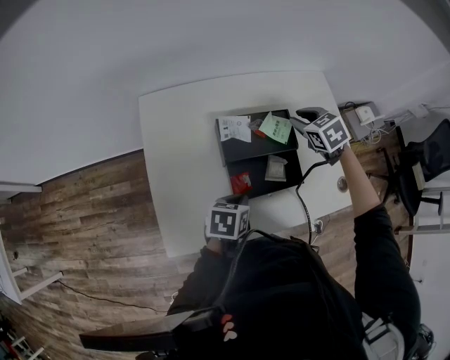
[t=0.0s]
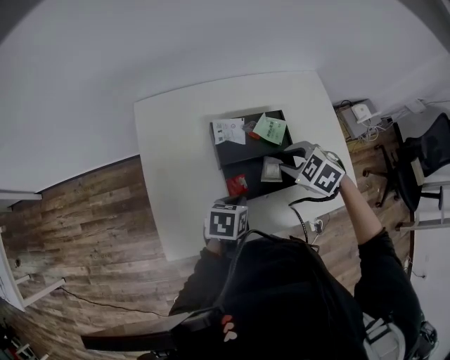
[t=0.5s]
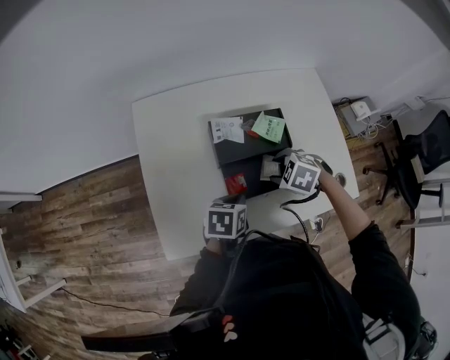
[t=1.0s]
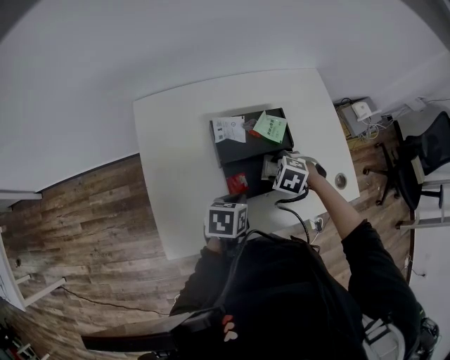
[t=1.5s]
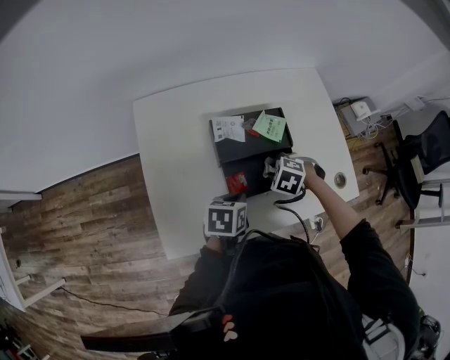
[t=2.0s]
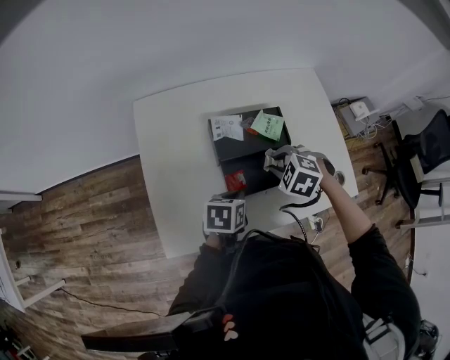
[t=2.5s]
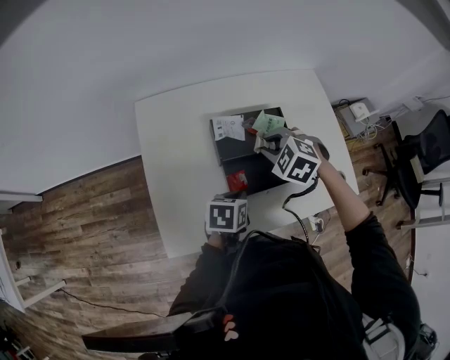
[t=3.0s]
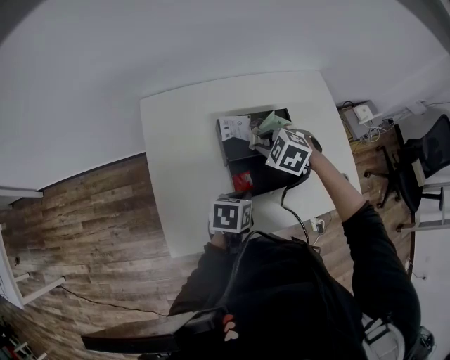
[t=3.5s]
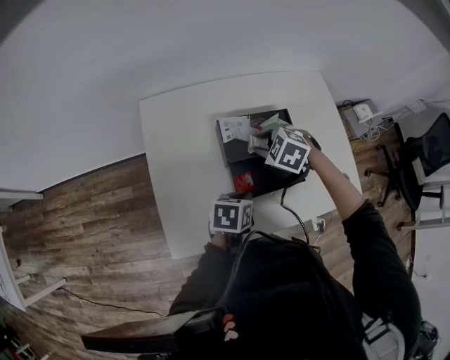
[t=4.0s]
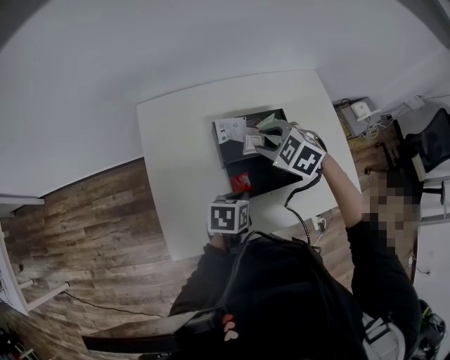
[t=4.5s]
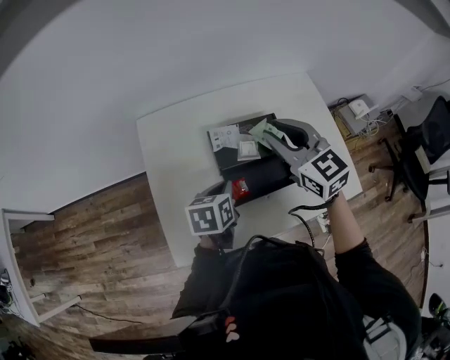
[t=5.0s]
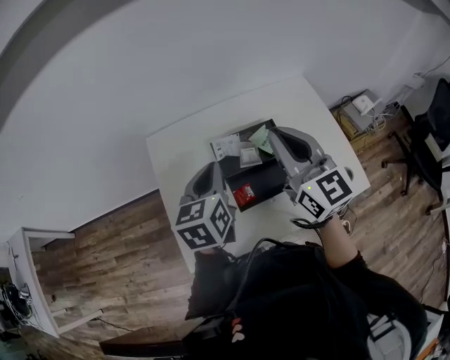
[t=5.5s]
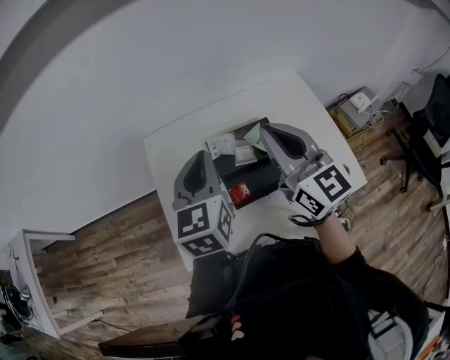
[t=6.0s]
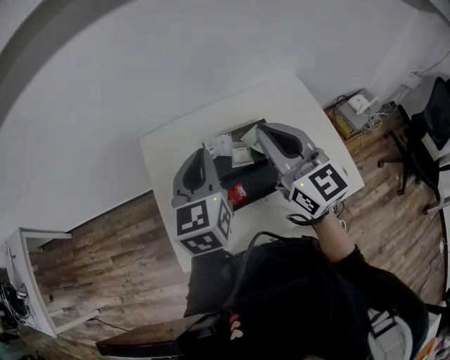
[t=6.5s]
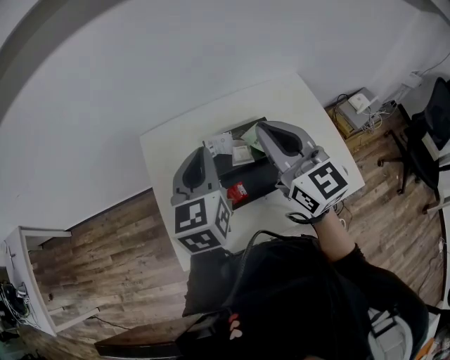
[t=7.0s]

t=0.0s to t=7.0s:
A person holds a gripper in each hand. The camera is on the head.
t=0.0s to t=2.0s: The right gripper shifts by roughly 20 cm, and swivels some 40 degrees.
t=2.0s to t=3.5s: The right gripper ends up some 15 cm from where it was.
t=3.5s to t=5.0s: The left gripper heads upward and forward, covering about 10 cm. Meanwhile the right gripper travels upward by roughly 20 cm, and points its fingers some 50 degrees further upward.
t=5.0s to t=7.0s: The left gripper is displaced upward by approximately 20 cm, and changes its angle by some 40 degrees. The right gripper is displaced upward by about 10 cm, turns by roughly 20 degrees, and closes up.

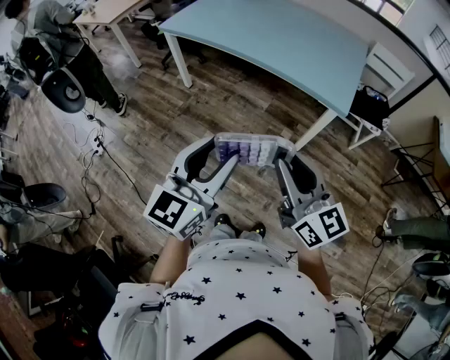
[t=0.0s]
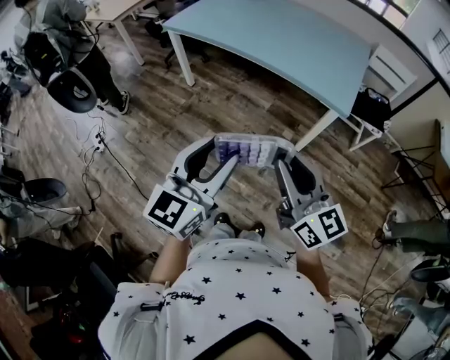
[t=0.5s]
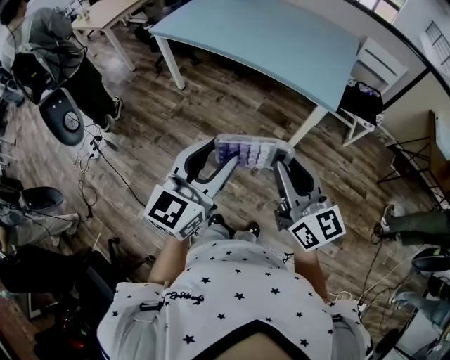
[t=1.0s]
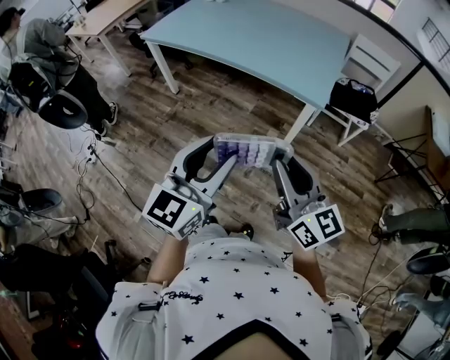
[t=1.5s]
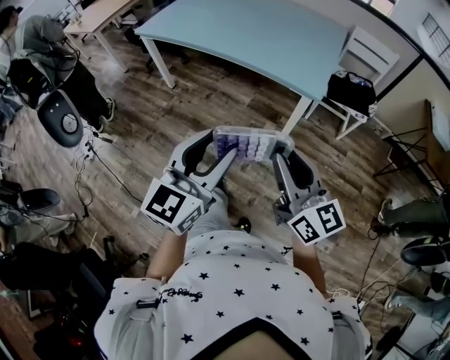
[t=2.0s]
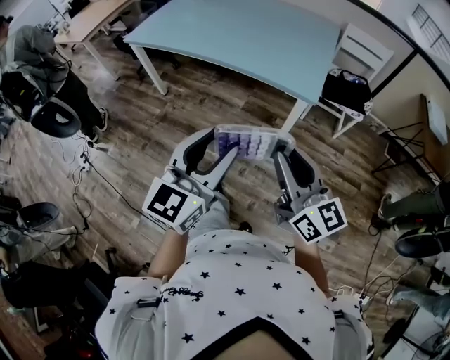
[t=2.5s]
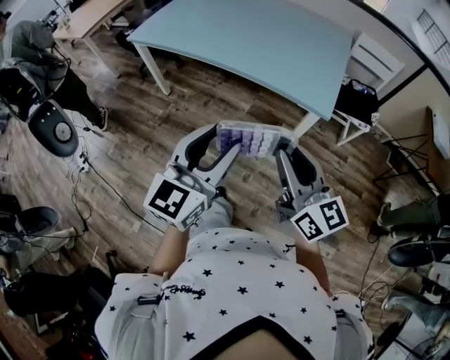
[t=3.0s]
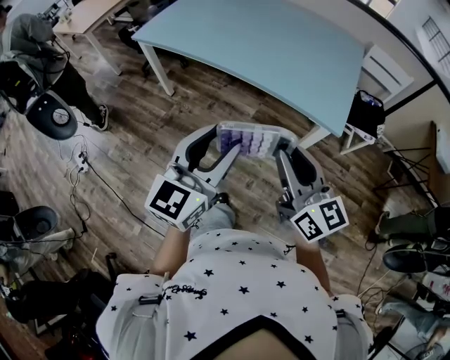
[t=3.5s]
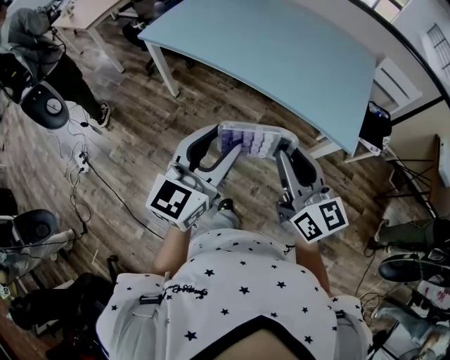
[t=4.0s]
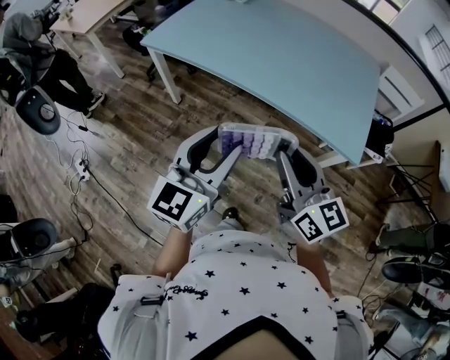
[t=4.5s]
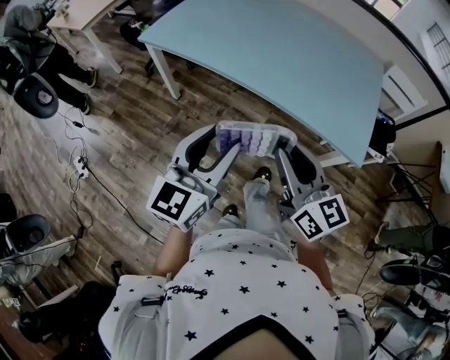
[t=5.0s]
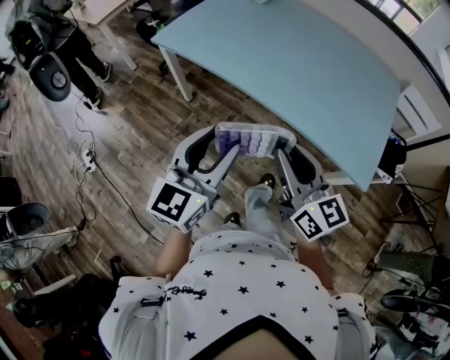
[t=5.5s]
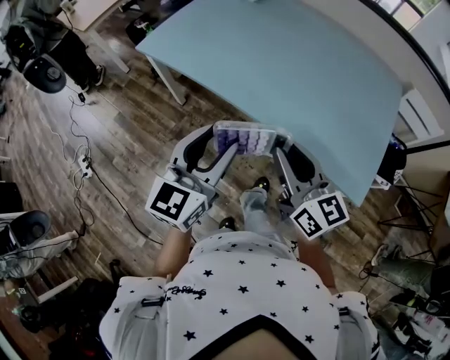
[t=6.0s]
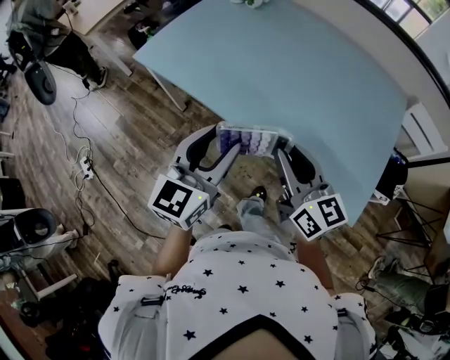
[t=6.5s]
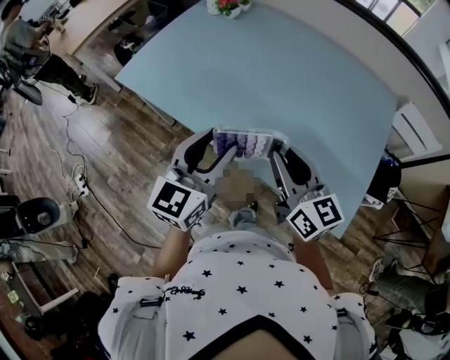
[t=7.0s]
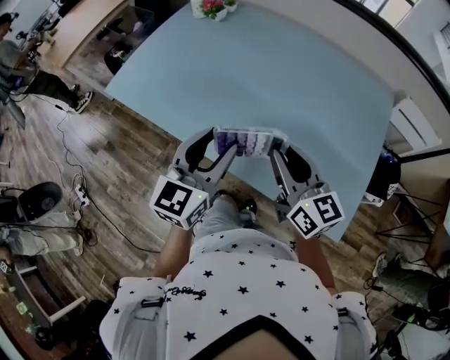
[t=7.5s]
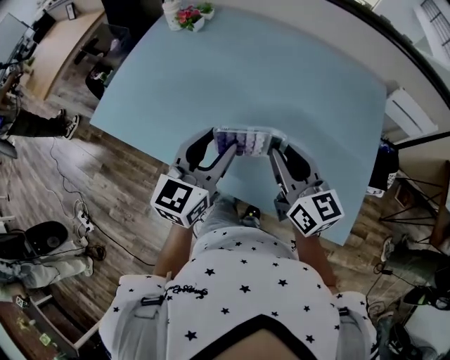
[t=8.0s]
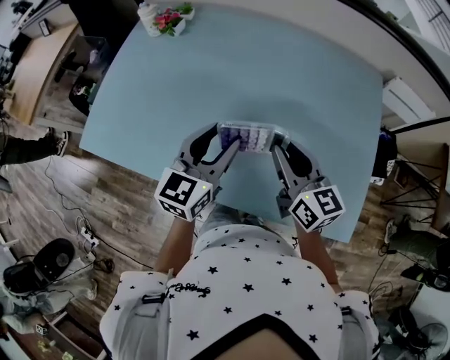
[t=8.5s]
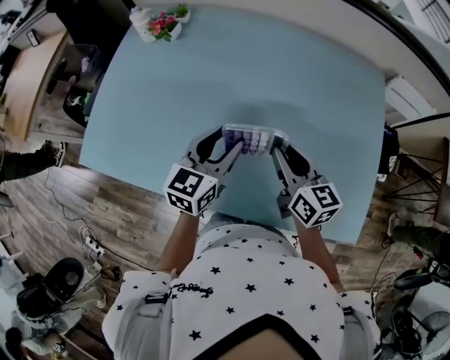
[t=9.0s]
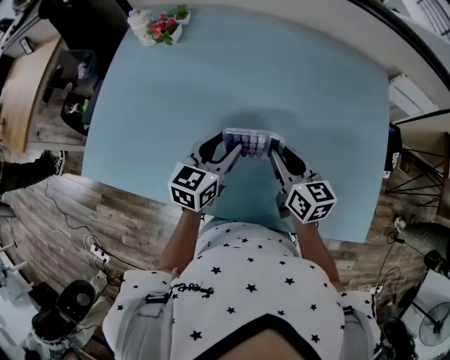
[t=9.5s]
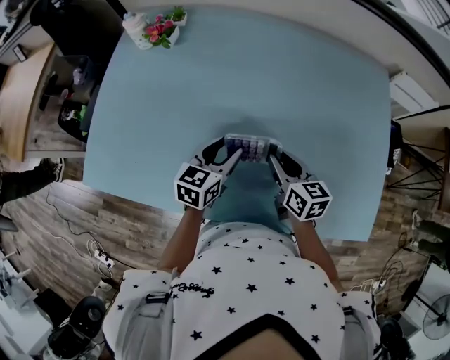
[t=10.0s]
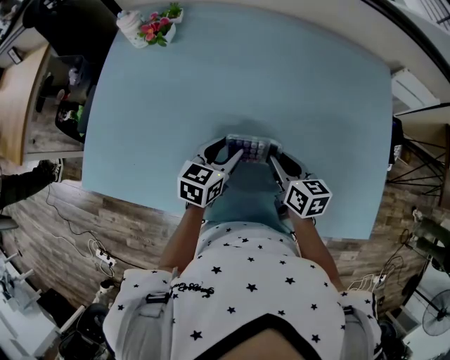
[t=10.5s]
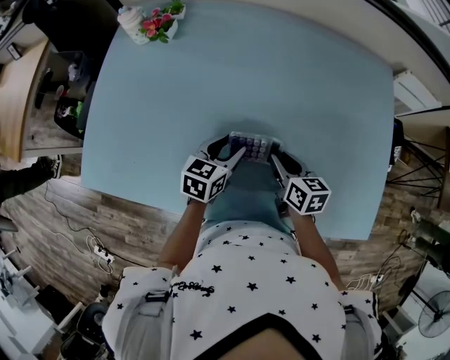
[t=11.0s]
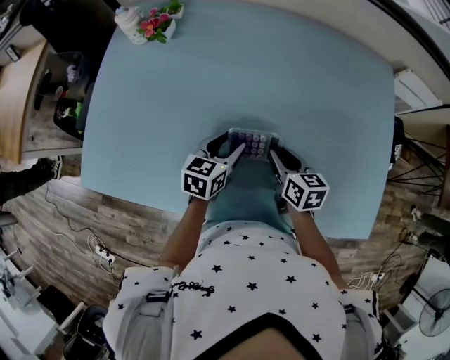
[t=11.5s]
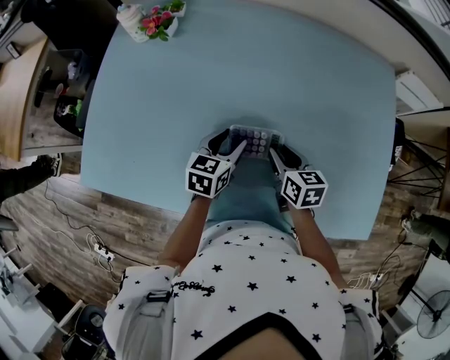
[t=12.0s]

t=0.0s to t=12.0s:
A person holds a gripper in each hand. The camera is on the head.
t=0.0s to t=2.0s: Both grippers move to the right, some 15 cm.
t=2.0s to t=4.0s: Both grippers travel together forward and to the left, approximately 30 cm.
t=4.0s to t=6.0s: Both grippers travel together forward, some 20 cm.
t=6.0s to t=8.0s: The grippers both shift forward and to the right by approximately 25 cm.
t=8.0s to t=10.0s: The two grippers go roughly 20 cm downward and forward. The left gripper swivels about 30 degrees, while the right gripper rotates some 30 degrees.
t=10.0s to t=12.0s: The right gripper moves roughly 5 cm.

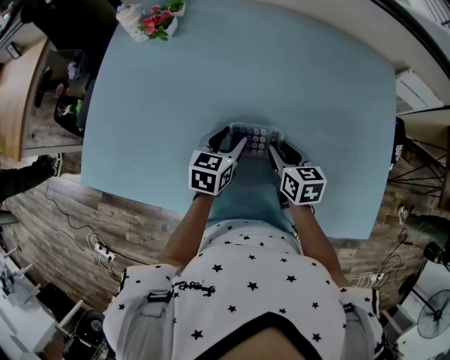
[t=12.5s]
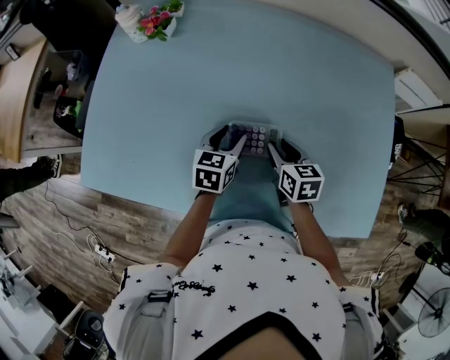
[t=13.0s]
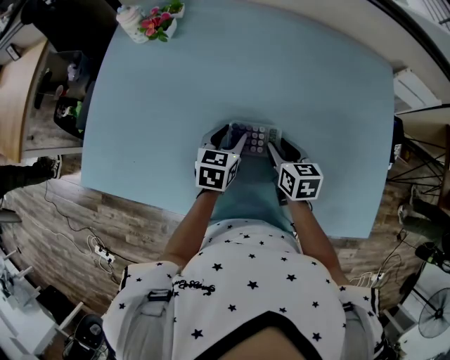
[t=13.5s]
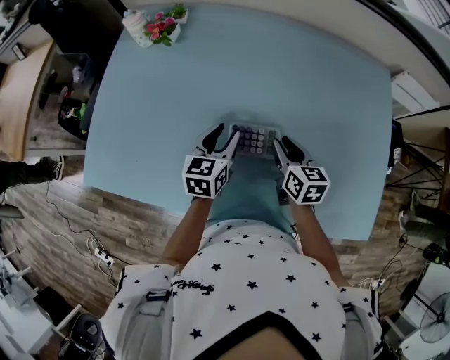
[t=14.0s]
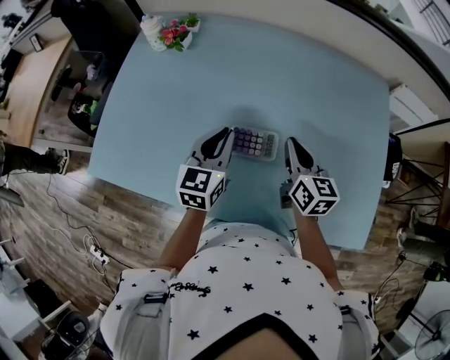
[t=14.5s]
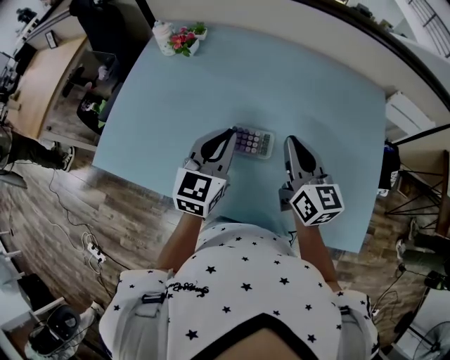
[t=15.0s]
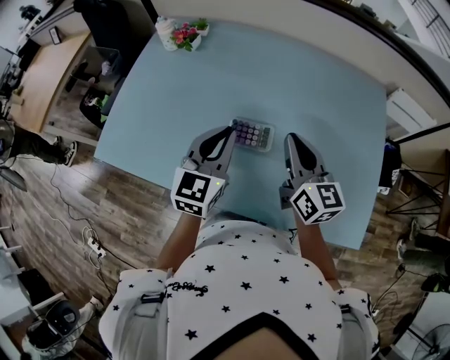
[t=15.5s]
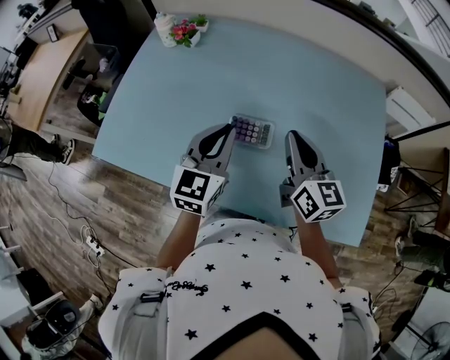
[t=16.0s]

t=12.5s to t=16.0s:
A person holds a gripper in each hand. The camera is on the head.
t=12.5s to t=14.5s: Both grippers move upward, approximately 10 cm. The right gripper changes its angle by approximately 20 degrees, and closes its fingers. Meanwhile the left gripper changes its angle by about 20 degrees, and closes up.
t=14.5s to t=16.0s: The right gripper goes some 10 cm upward. The left gripper heads upward and backward, covering some 10 cm.

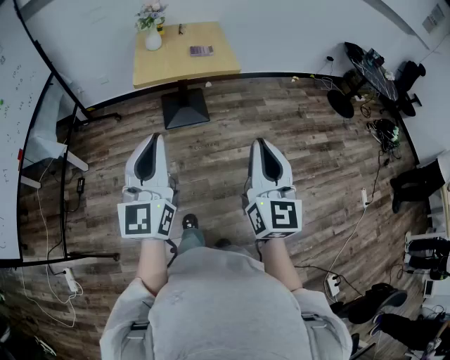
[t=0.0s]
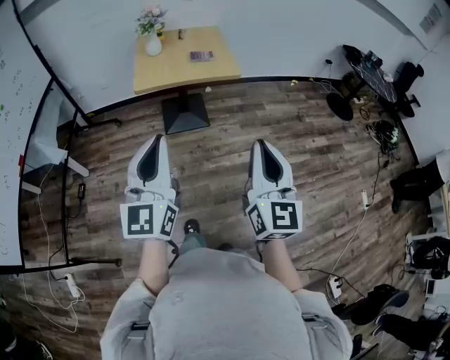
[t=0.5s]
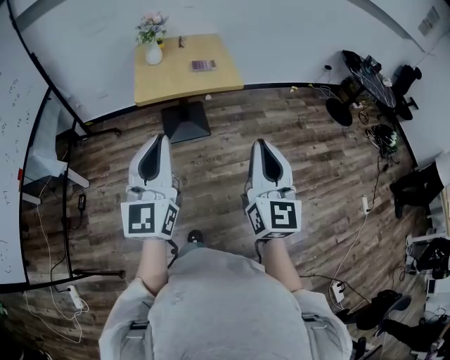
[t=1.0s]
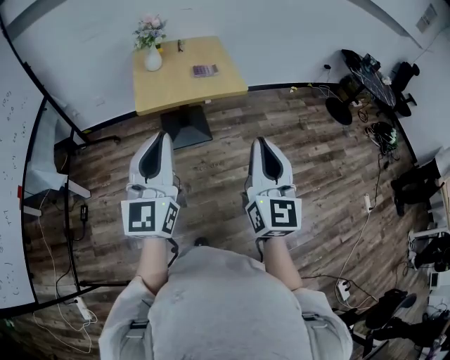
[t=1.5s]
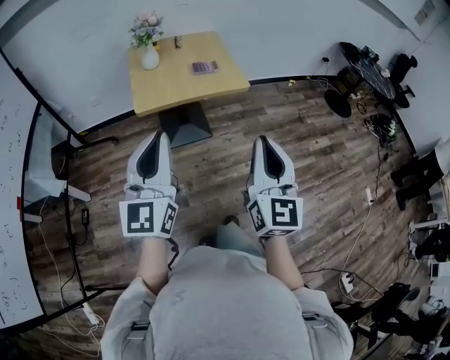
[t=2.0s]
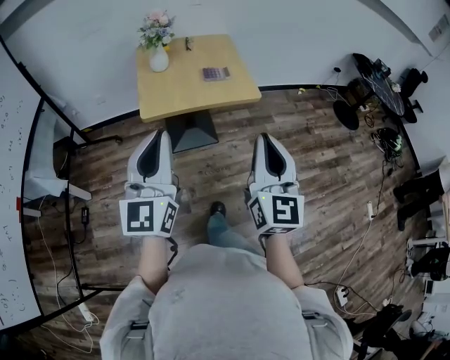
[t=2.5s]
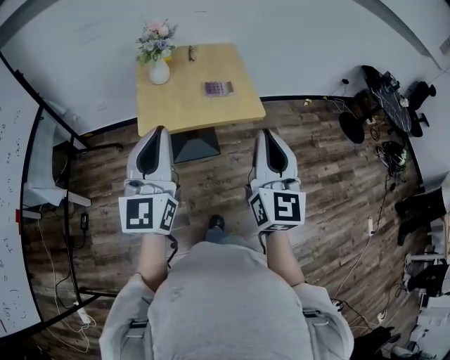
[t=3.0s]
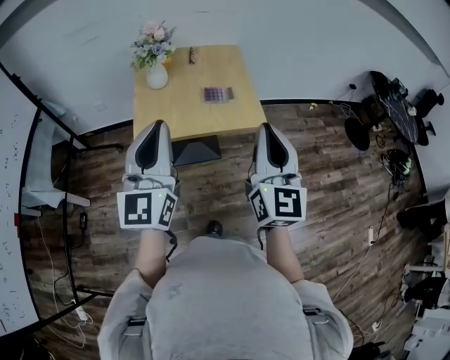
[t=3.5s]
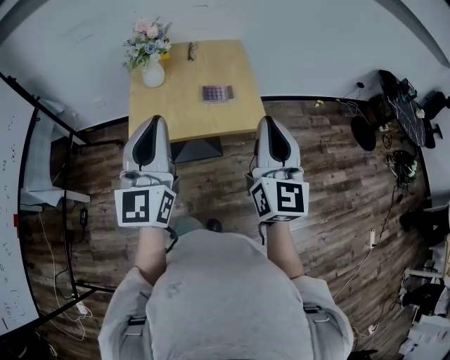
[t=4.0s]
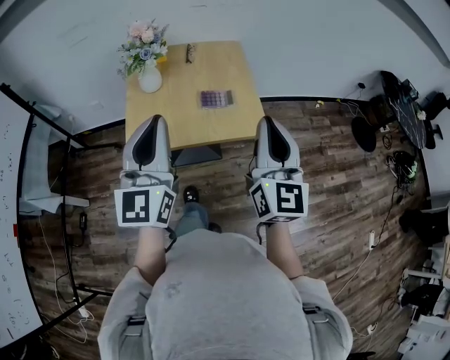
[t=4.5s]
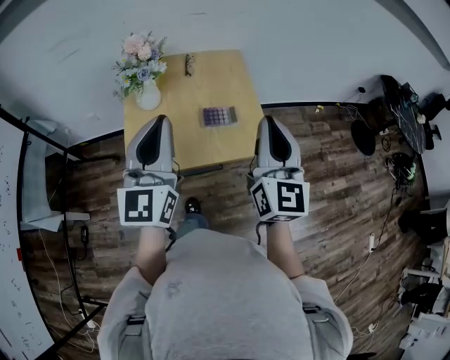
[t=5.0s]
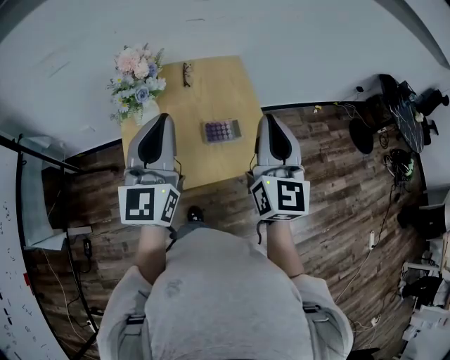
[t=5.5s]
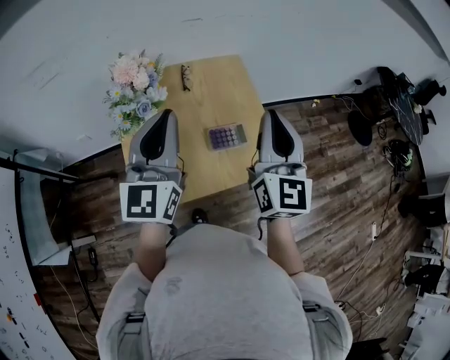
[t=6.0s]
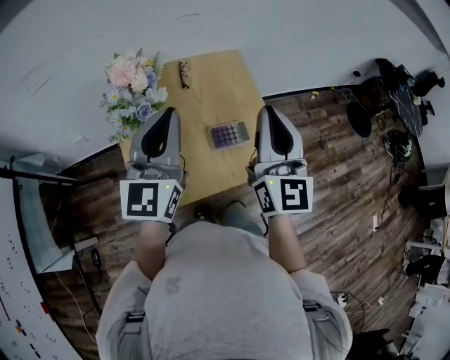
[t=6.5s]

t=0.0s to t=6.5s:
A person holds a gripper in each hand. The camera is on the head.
t=0.0s to t=2.0s: Both grippers travel together forward and to the left, some 15 cm.
t=2.0s to t=4.5s: Both grippers move forward, about 35 cm.
t=4.5s to t=6.5s: The left gripper shifts about 25 cm forward; the right gripper goes about 25 cm forward and to the left.
